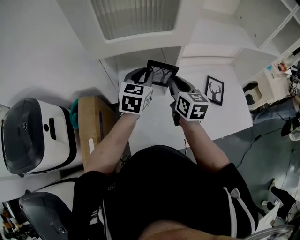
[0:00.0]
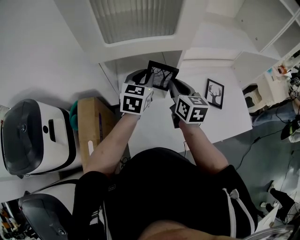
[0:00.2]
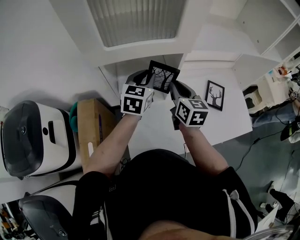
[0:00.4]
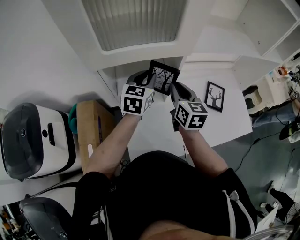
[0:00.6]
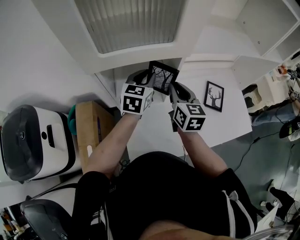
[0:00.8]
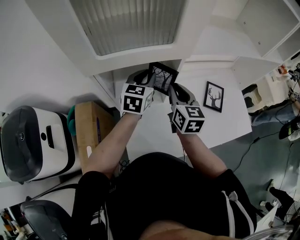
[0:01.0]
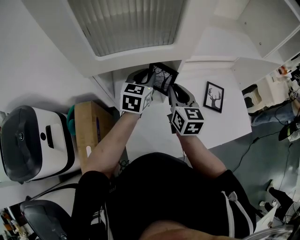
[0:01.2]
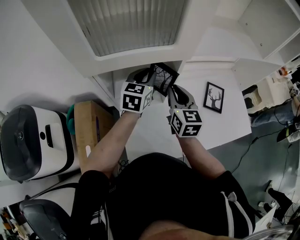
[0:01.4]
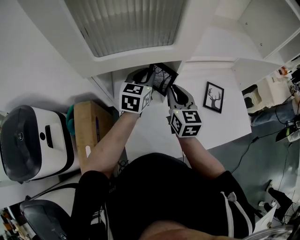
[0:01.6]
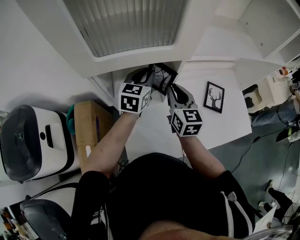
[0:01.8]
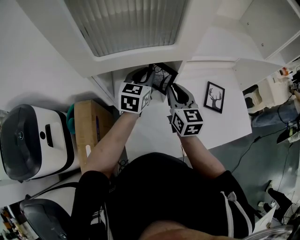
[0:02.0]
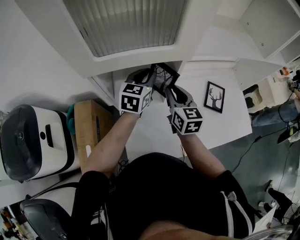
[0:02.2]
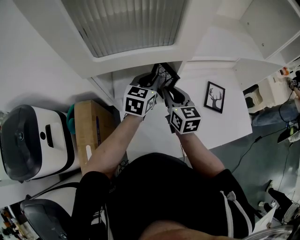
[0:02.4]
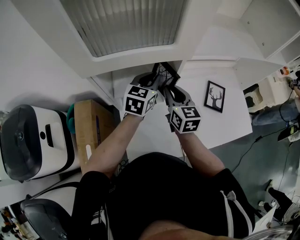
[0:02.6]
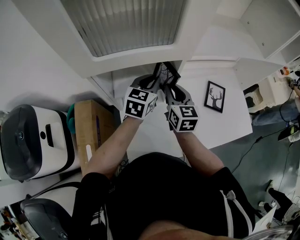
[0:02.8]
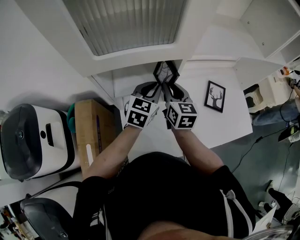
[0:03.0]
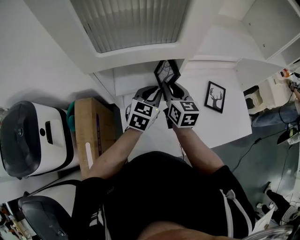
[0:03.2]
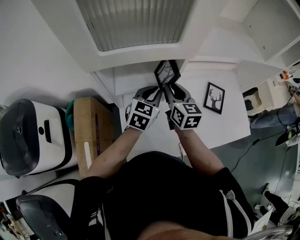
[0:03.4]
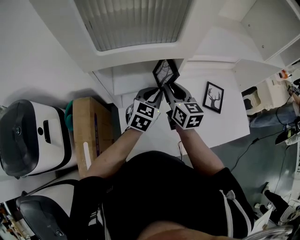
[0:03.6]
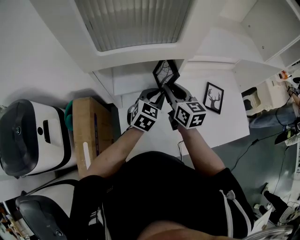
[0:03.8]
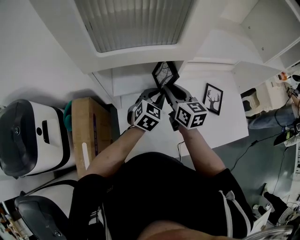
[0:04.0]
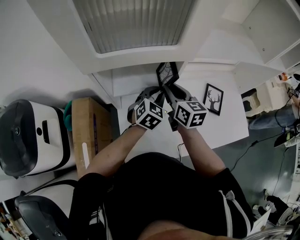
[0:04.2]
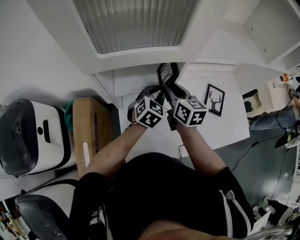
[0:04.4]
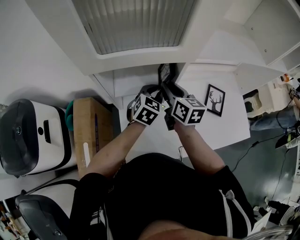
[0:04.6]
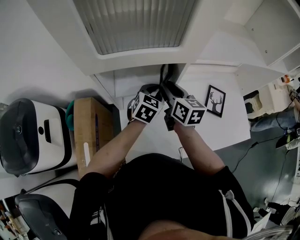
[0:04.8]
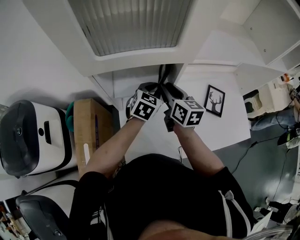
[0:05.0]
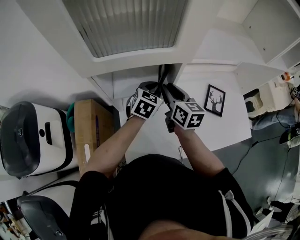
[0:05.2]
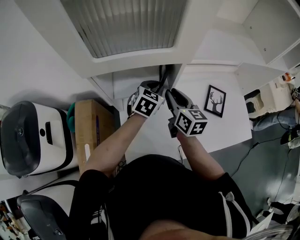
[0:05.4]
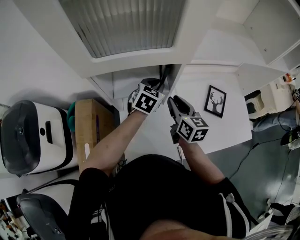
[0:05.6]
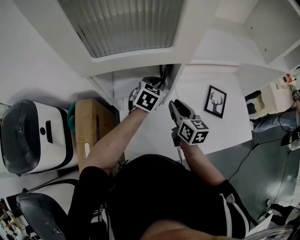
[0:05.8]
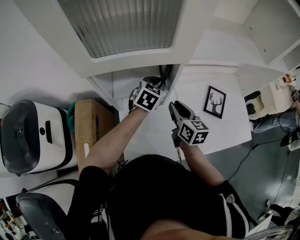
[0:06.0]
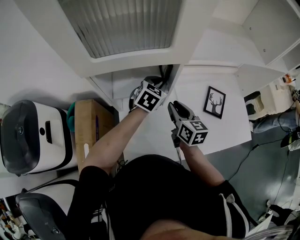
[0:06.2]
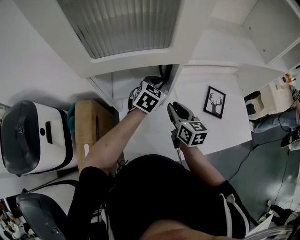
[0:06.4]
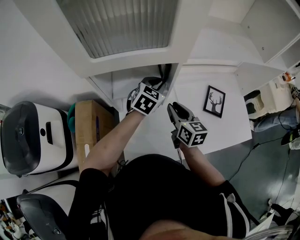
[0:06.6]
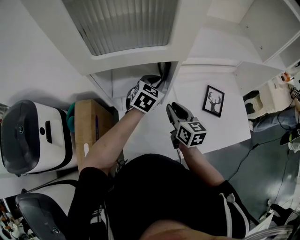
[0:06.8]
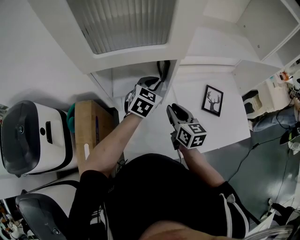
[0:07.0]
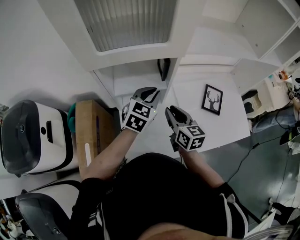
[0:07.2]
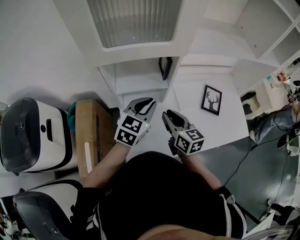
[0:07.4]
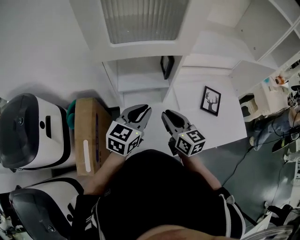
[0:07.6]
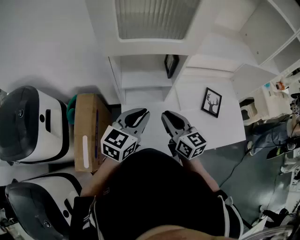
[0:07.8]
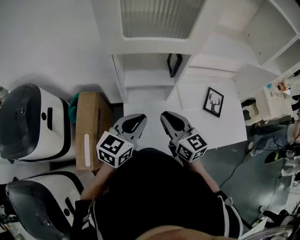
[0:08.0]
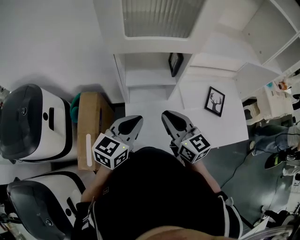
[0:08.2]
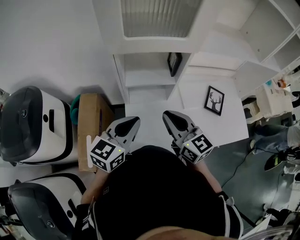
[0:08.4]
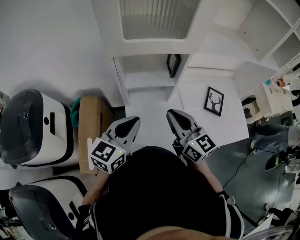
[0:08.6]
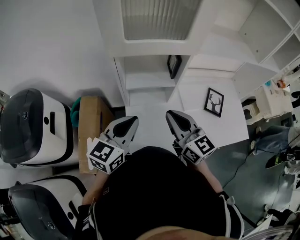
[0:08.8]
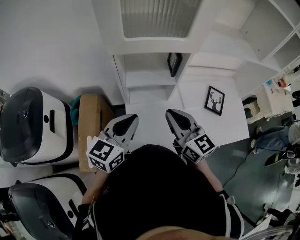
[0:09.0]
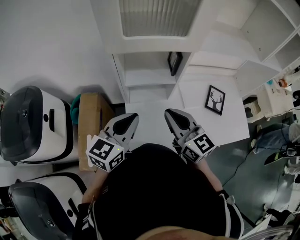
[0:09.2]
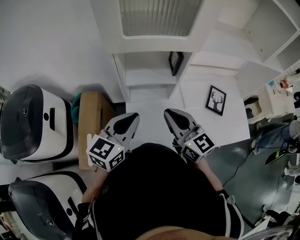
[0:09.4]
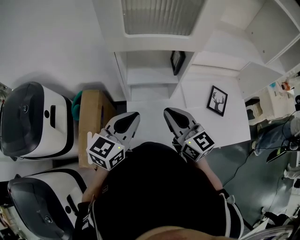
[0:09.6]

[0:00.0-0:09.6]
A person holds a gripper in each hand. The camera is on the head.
0:00.0 to 0:01.6: The left gripper heads forward, covering roughly 5 cm.
0:01.6 to 0:03.2: The left gripper is displaced backward by some 5 cm.
0:03.2 to 0:04.8: There are only small adjustments of the grippers.
0:04.8 to 0:06.4: The right gripper goes about 10 cm backward and to the right.
0:06.4 to 0:08.0: The right gripper moves backward, to the left and upward, about 15 cm, and changes its angle by approximately 20 degrees, while the left gripper is displaced backward and to the left by approximately 25 cm, and changes its angle by some 30 degrees.
0:08.0 to 0:09.6: The grippers make only small movements.

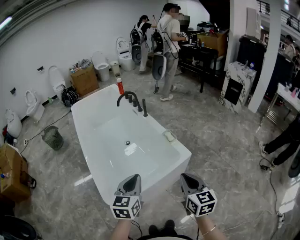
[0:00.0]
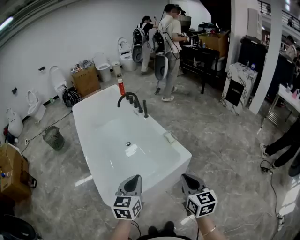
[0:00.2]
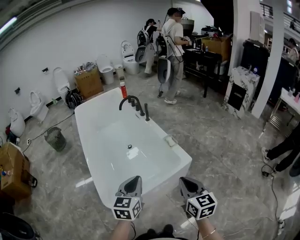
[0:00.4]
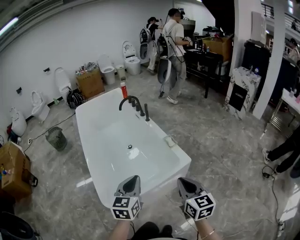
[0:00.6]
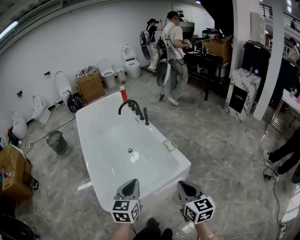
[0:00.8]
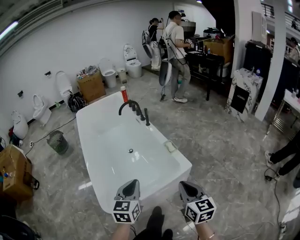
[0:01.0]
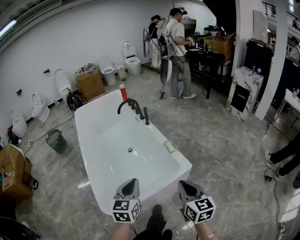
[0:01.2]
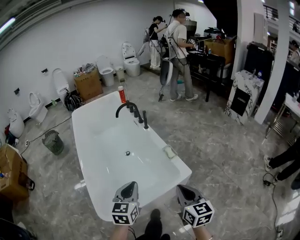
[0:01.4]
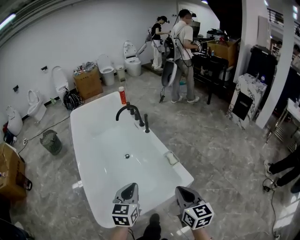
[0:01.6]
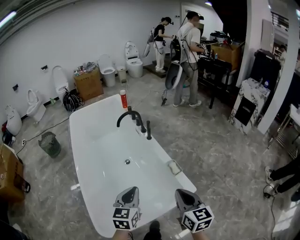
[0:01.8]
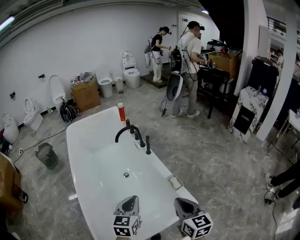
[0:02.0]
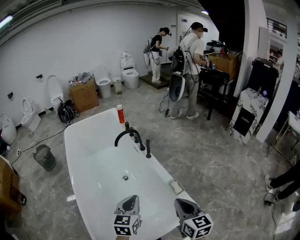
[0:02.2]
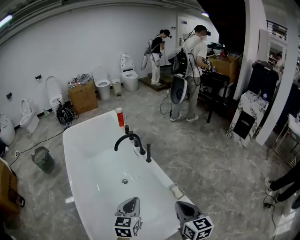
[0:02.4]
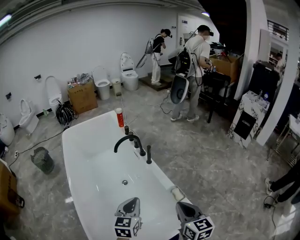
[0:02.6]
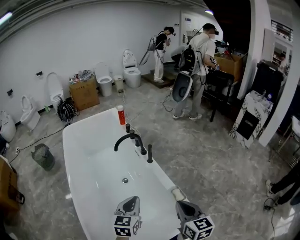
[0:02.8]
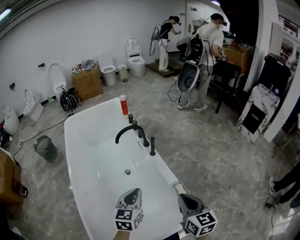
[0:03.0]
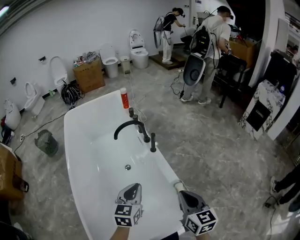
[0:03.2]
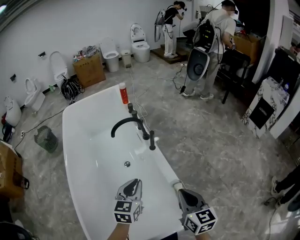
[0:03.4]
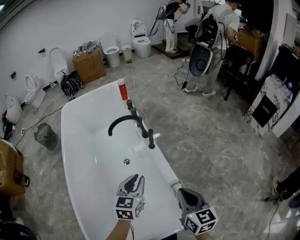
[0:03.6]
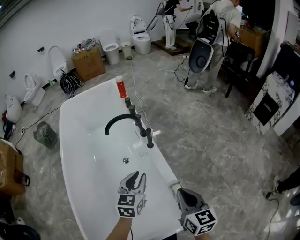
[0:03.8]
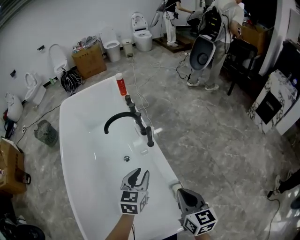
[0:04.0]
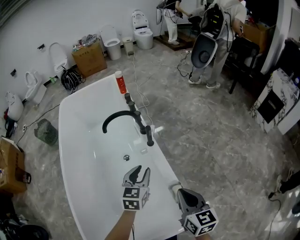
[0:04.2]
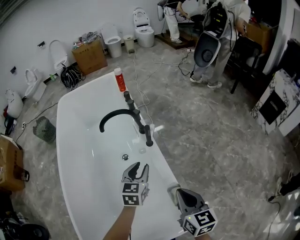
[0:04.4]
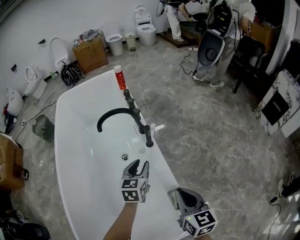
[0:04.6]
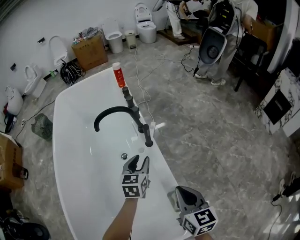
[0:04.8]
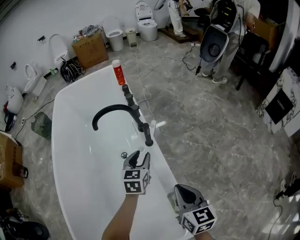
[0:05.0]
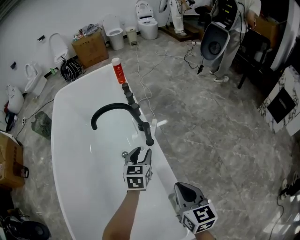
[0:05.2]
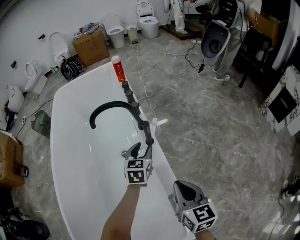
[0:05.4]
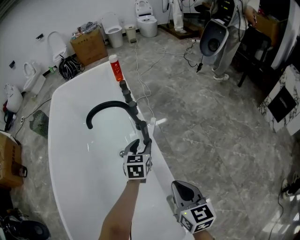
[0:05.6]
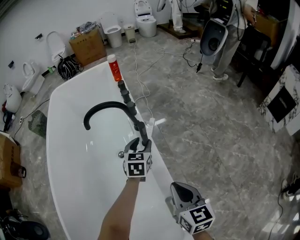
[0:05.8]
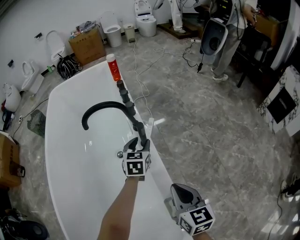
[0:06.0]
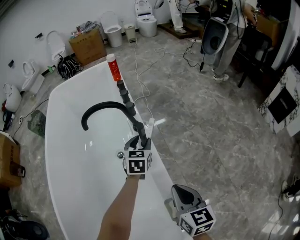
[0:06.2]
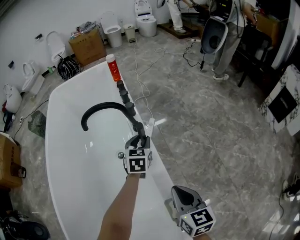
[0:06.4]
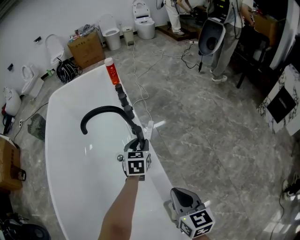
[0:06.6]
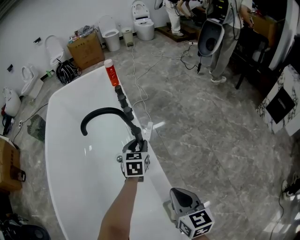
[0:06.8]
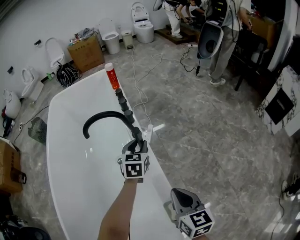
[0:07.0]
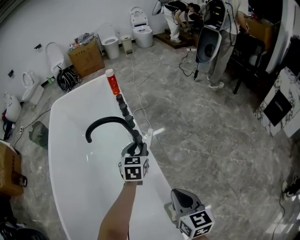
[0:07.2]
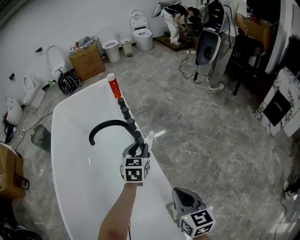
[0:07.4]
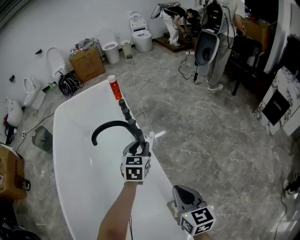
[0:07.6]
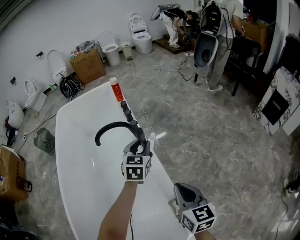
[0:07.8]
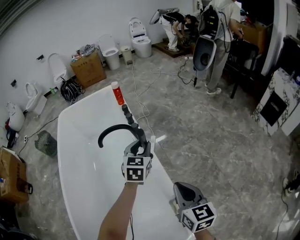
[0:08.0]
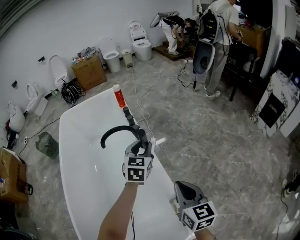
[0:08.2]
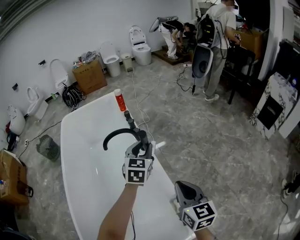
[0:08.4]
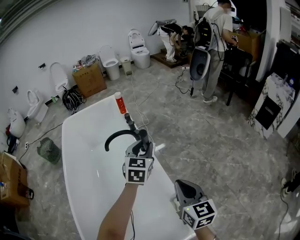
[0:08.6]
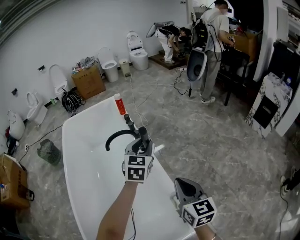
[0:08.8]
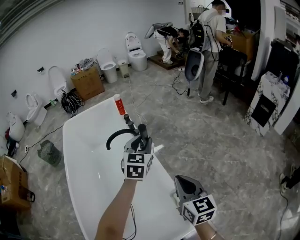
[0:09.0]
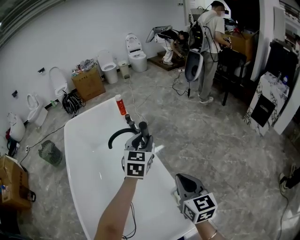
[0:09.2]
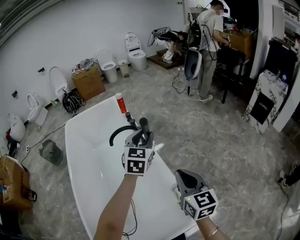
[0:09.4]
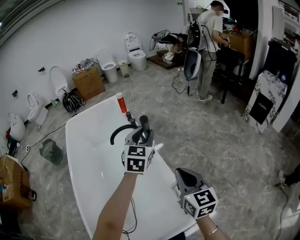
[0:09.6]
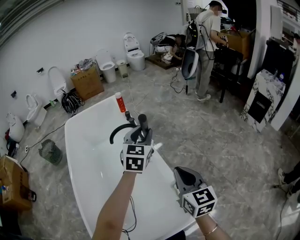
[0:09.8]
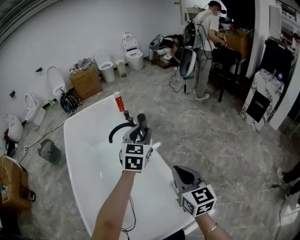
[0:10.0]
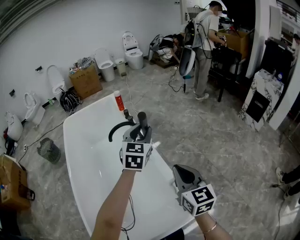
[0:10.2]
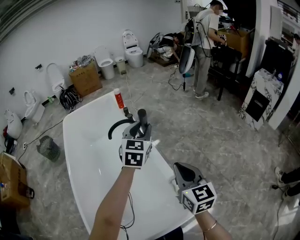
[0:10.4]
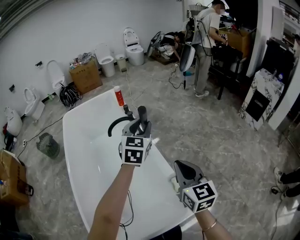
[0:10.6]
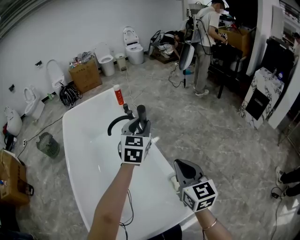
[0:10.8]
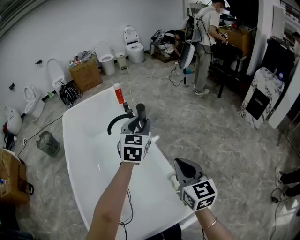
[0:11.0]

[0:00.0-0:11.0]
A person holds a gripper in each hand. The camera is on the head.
0:00.0 to 0:01.6: Both grippers travel together forward, some 20 cm.
0:01.6 to 0:03.2: The pair of grippers is taken forward, some 40 cm.
0:03.2 to 0:04.8: Both grippers travel together forward and downward, roughly 35 cm. The left gripper opens its fingers.
0:04.8 to 0:06.2: The right gripper heads downward and forward, covering roughly 15 cm; the left gripper travels forward and downward by roughly 20 cm.
0:06.2 to 0:07.8: The grippers both shift upward by roughly 15 cm.
0:07.8 to 0:09.4: Both grippers travel together upward and backward, some 30 cm.
0:09.4 to 0:11.0: The left gripper moves about 5 cm.

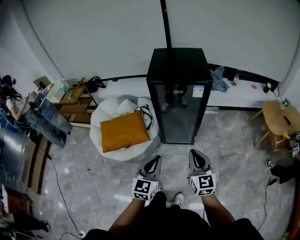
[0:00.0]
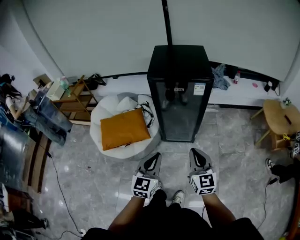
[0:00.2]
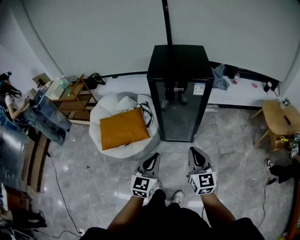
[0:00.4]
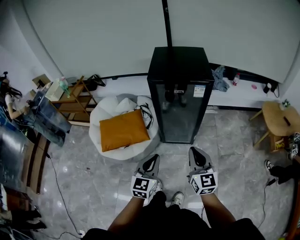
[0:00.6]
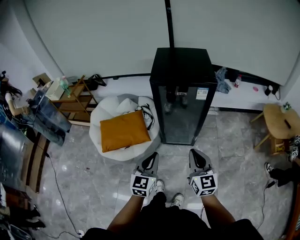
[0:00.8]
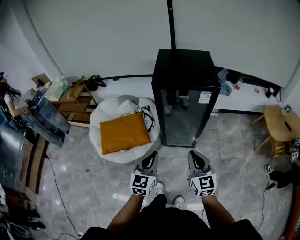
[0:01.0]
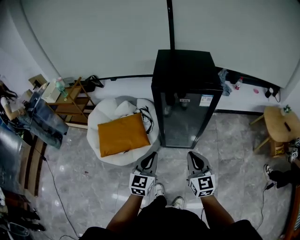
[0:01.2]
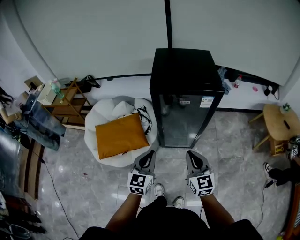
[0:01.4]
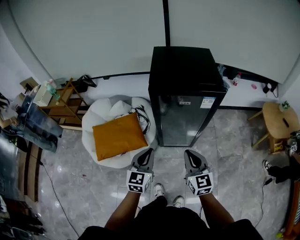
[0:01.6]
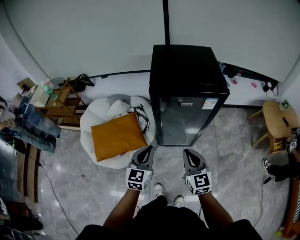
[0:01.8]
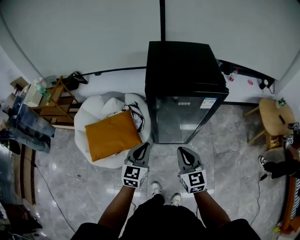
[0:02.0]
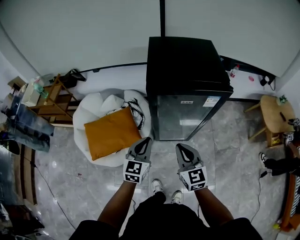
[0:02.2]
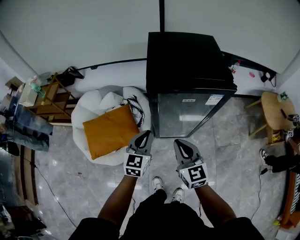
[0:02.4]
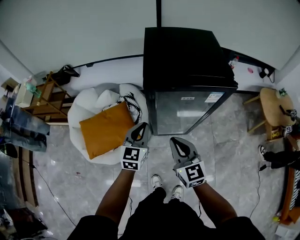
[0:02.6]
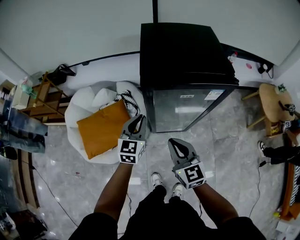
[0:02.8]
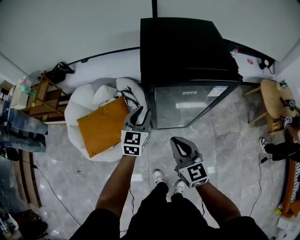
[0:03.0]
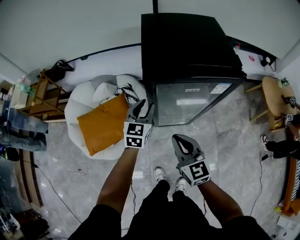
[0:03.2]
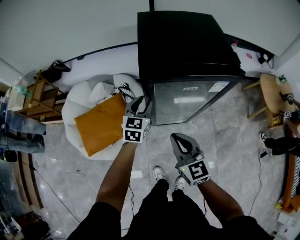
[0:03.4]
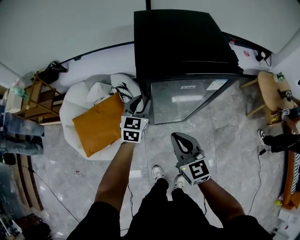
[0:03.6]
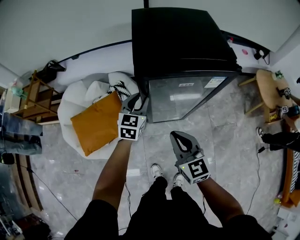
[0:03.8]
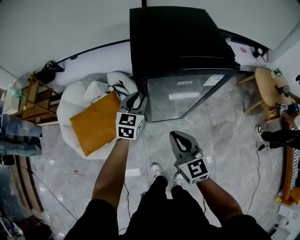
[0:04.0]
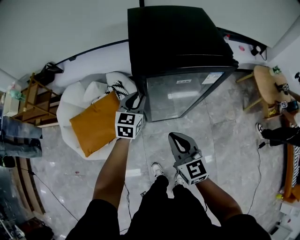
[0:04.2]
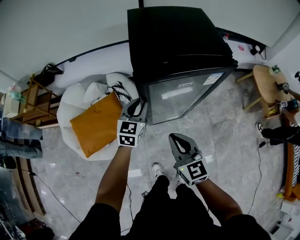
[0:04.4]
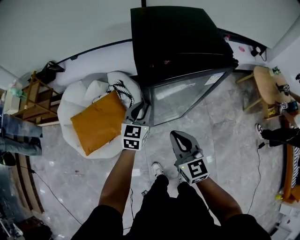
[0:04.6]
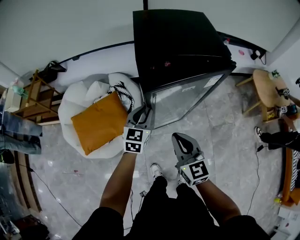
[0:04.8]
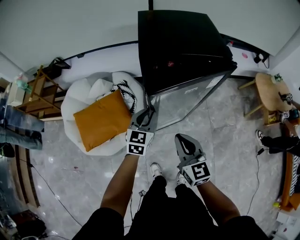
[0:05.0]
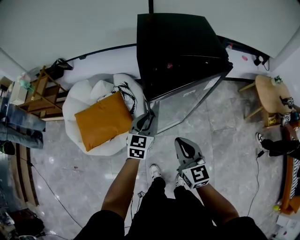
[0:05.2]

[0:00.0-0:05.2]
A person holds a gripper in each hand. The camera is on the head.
0:00.0 to 0:01.8: The grippers both shift forward and to the left by approximately 20 cm.
0:01.8 to 0:03.4: The left gripper goes about 20 cm forward, and opens up, while the right gripper shifts roughly 10 cm to the left and forward.
0:03.4 to 0:05.2: The right gripper goes approximately 5 cm backward, while the left gripper moves backward, about 10 cm.
